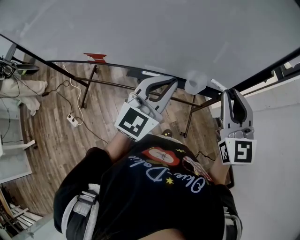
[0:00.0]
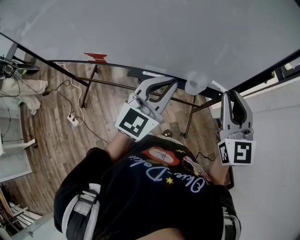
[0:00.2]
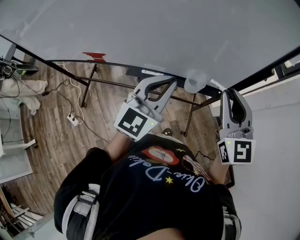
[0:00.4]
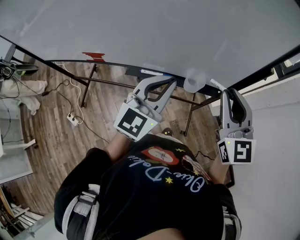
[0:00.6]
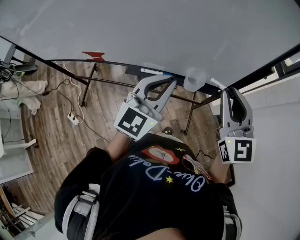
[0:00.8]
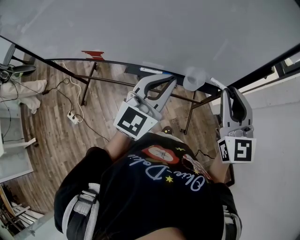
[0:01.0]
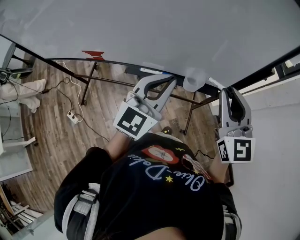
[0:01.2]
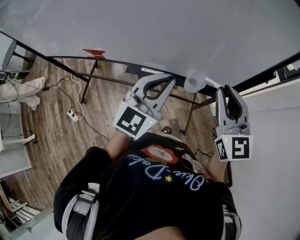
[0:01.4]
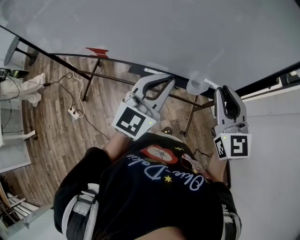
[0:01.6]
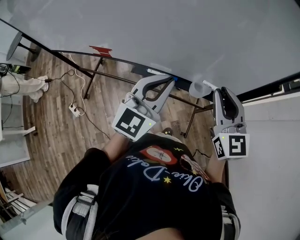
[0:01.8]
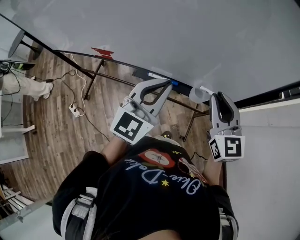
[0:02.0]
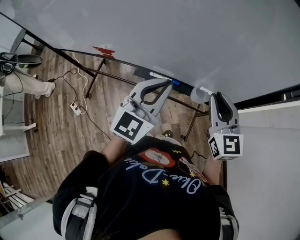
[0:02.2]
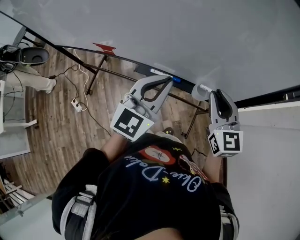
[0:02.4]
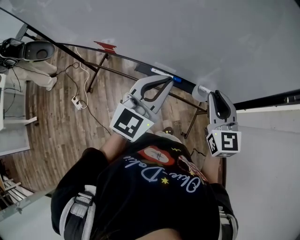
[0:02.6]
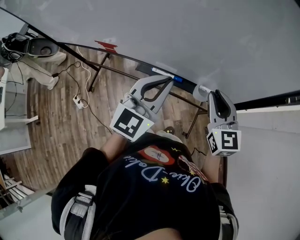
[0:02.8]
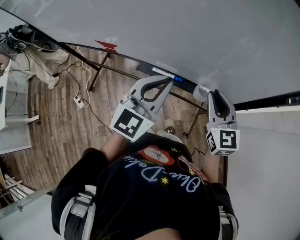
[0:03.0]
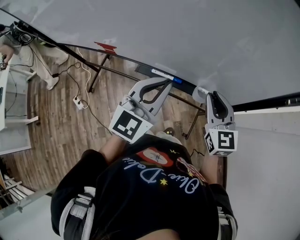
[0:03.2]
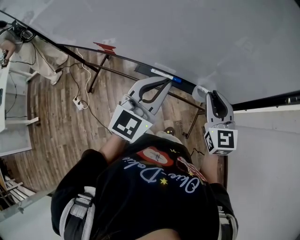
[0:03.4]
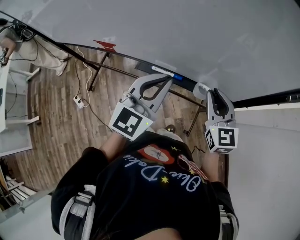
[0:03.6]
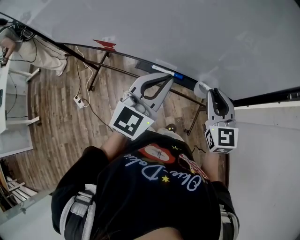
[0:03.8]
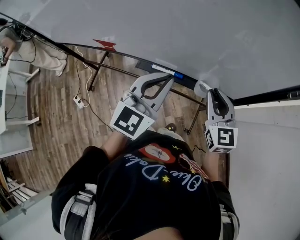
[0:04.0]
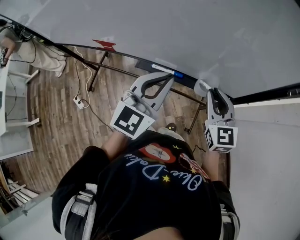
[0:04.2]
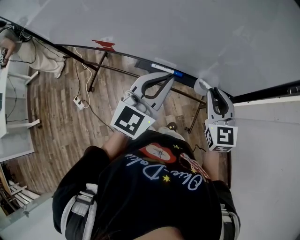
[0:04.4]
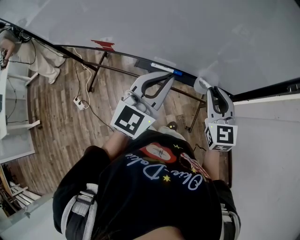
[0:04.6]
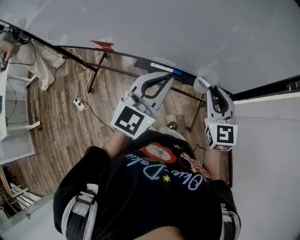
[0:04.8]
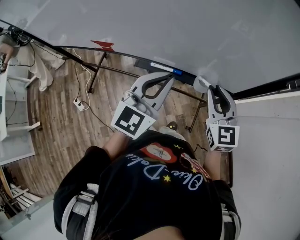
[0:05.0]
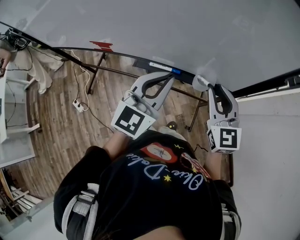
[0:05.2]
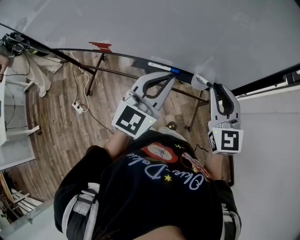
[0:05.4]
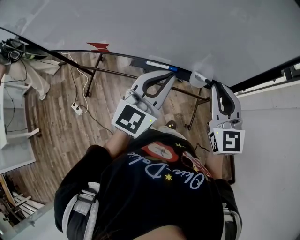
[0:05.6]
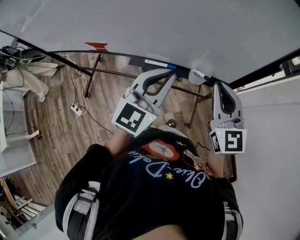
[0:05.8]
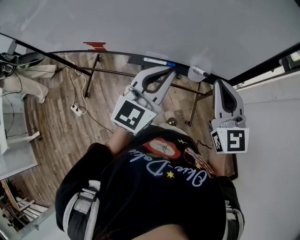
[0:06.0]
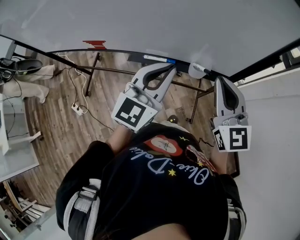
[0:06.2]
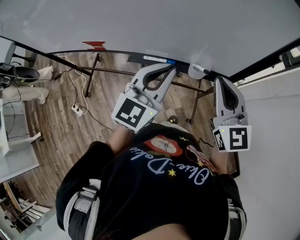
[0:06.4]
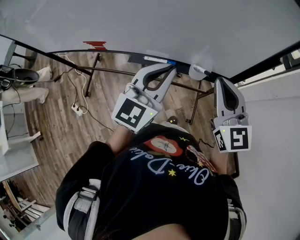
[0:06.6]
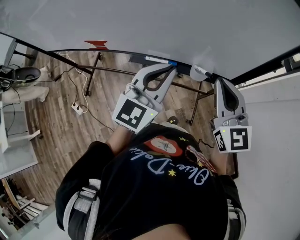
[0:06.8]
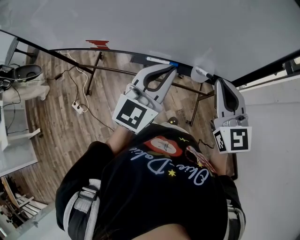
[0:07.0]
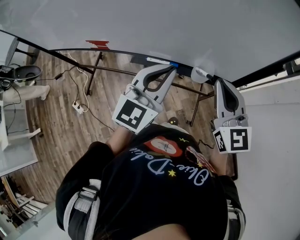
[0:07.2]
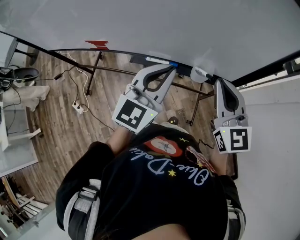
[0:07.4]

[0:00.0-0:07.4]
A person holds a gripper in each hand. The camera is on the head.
0:00.0 to 0:01.4: The grippers move only a little.
0:01.4 to 0:03.0: The right gripper travels downward by about 10 cm.
0:03.0 to 0:04.4: The grippers move only a little.
0:04.4 to 0:06.0: The right gripper travels upward by approximately 10 cm.
0:06.0 to 0:07.4: Neither gripper changes place.

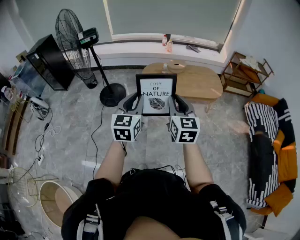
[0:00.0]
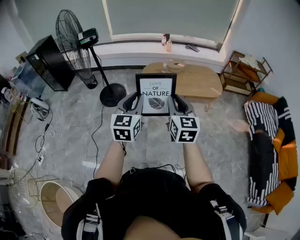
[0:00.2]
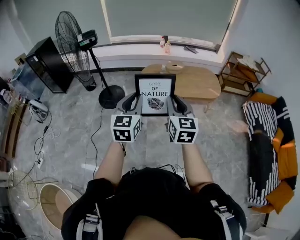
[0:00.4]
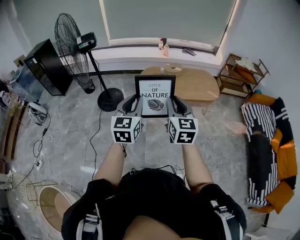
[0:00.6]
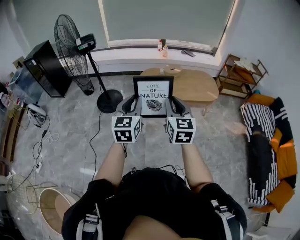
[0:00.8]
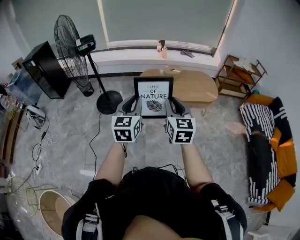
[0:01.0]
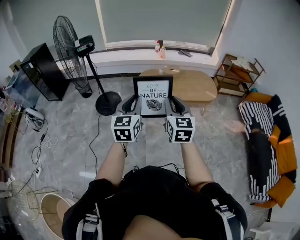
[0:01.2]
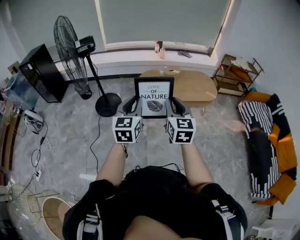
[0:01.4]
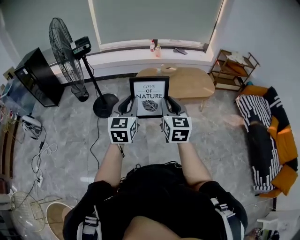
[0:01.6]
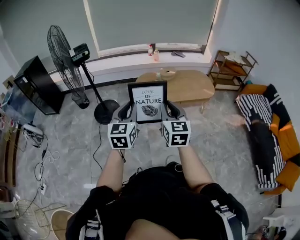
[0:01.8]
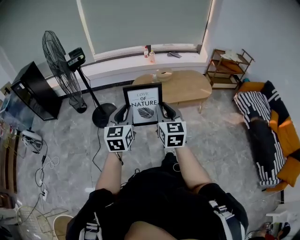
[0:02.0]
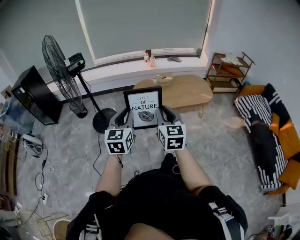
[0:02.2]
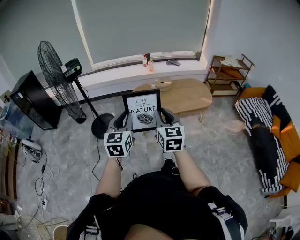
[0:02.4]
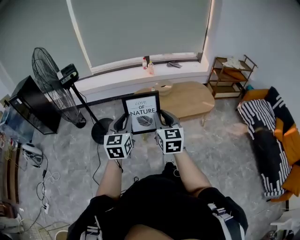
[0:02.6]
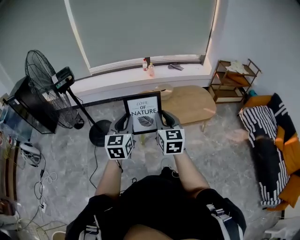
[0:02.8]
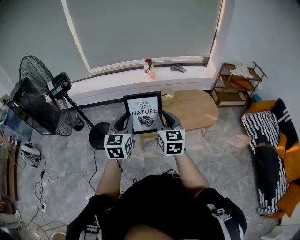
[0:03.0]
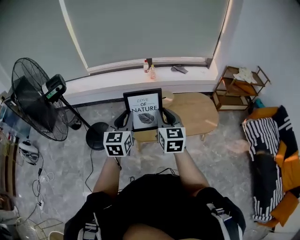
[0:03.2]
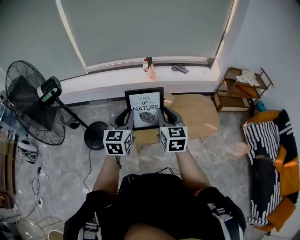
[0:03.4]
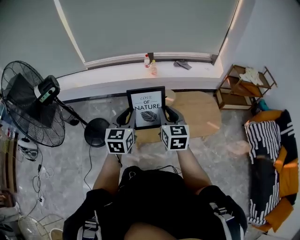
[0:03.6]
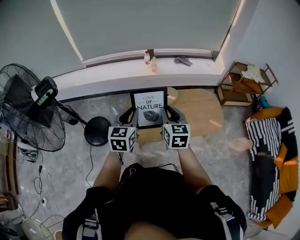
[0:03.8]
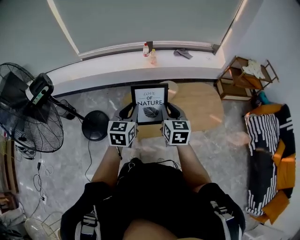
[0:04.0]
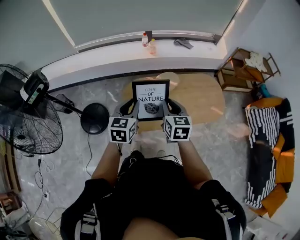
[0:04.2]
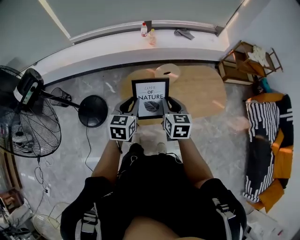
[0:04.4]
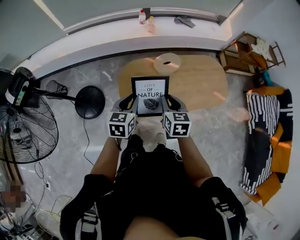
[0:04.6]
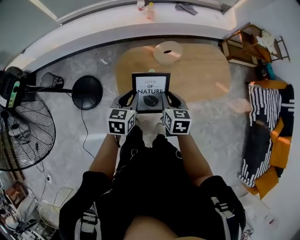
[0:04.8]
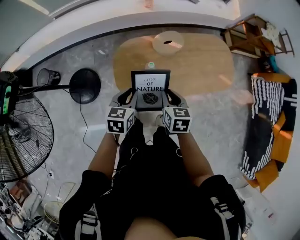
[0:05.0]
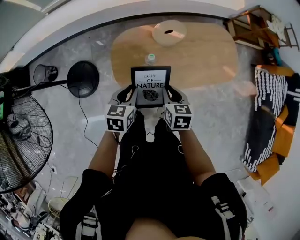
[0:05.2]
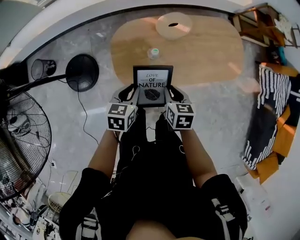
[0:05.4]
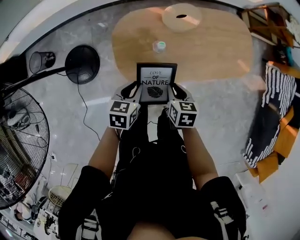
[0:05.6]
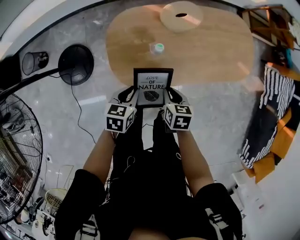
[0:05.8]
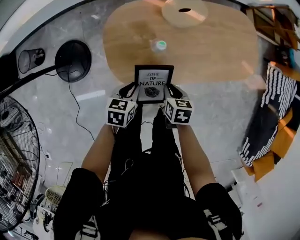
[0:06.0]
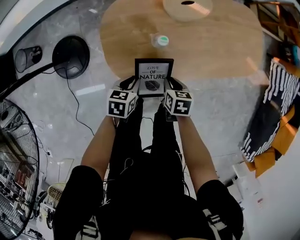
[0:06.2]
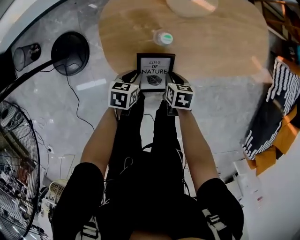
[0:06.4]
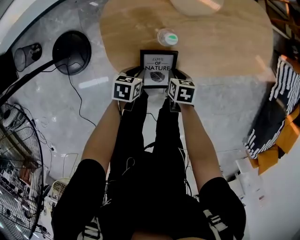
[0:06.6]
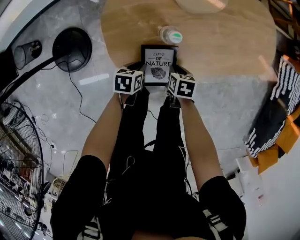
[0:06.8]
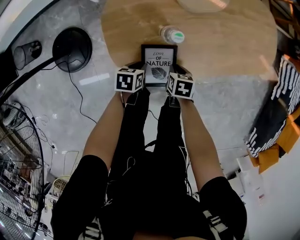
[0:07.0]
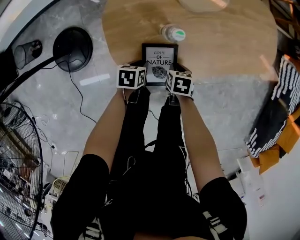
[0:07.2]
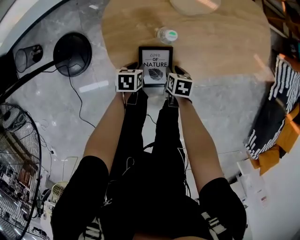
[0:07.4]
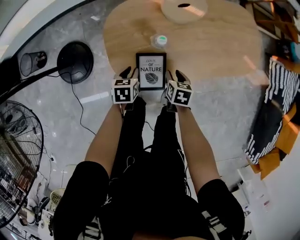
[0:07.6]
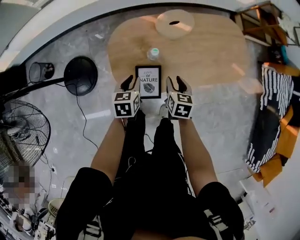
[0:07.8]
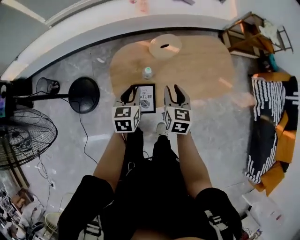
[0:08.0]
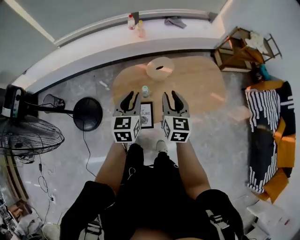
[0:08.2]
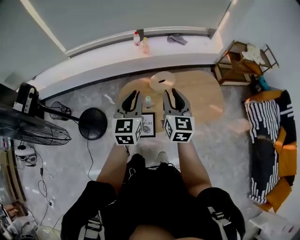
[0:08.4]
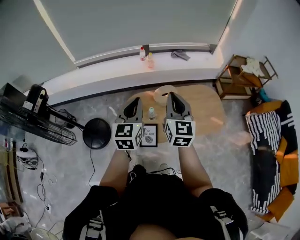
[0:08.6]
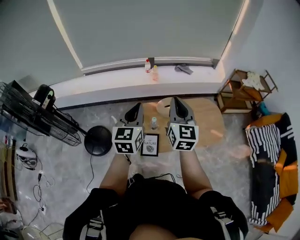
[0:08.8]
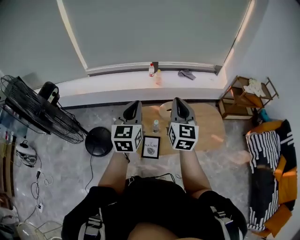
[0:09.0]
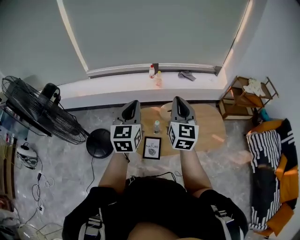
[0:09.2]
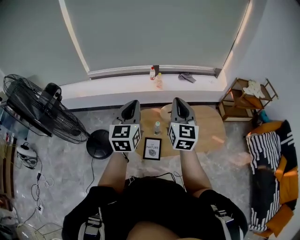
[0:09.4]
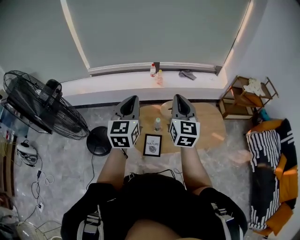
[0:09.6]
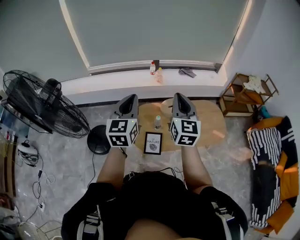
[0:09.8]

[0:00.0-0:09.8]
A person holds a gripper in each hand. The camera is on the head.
0:00.0 to 0:01.4: Both grippers move to the left, some 10 cm.
0:01.4 to 0:02.8: The two grippers go about 25 cm forward.
0:02.8 to 0:04.2: Both grippers are carried forward, approximately 40 cm.
0:04.2 to 0:05.6: Both grippers move downward, approximately 35 cm. The left gripper rotates some 30 degrees; the right gripper swivels some 30 degrees.
0:05.6 to 0:07.0: Both grippers move downward, approximately 30 cm. The left gripper rotates about 20 degrees.
0:07.0 to 0:08.4: The two grippers go some 70 cm upward. The left gripper tips its fingers upward by about 50 degrees. The right gripper tips its fingers upward by approximately 60 degrees.
0:08.4 to 0:09.8: The right gripper is displaced upward and backward by roughly 15 cm, and closes, while the left gripper is displaced upward, backward and to the left by roughly 20 cm.

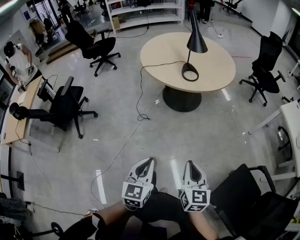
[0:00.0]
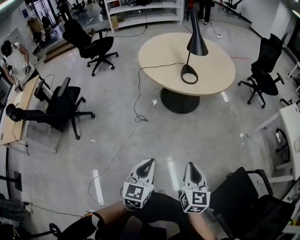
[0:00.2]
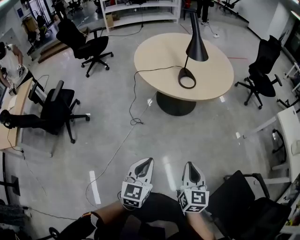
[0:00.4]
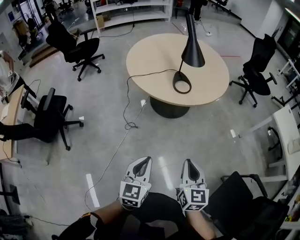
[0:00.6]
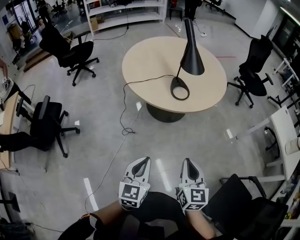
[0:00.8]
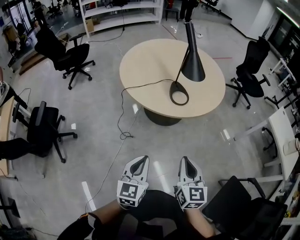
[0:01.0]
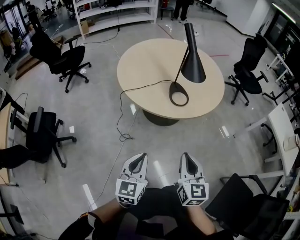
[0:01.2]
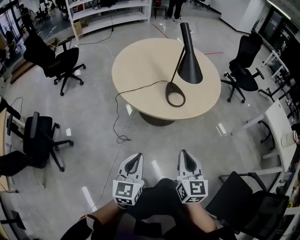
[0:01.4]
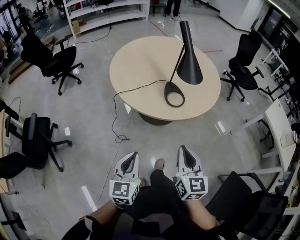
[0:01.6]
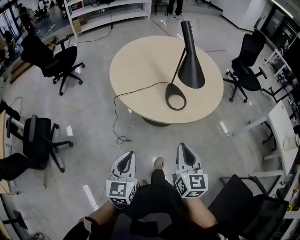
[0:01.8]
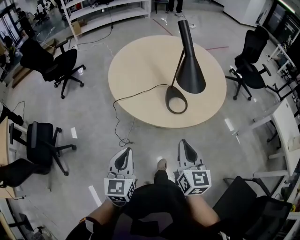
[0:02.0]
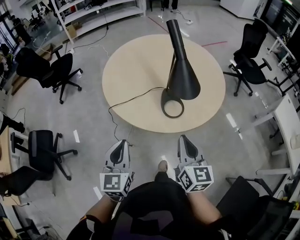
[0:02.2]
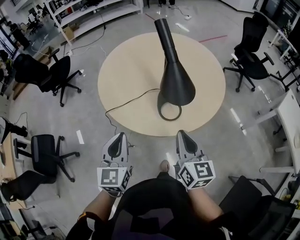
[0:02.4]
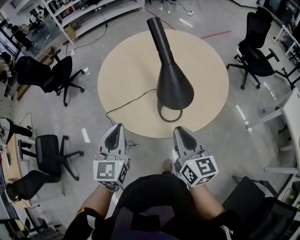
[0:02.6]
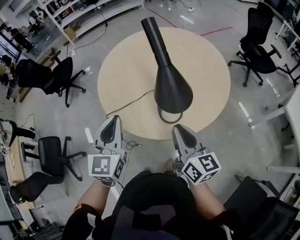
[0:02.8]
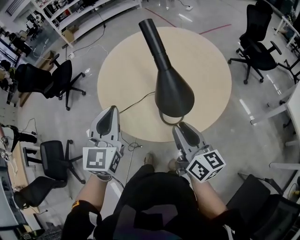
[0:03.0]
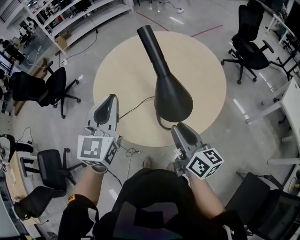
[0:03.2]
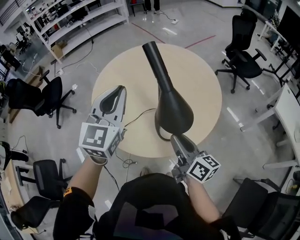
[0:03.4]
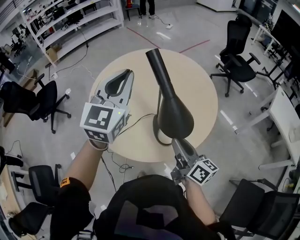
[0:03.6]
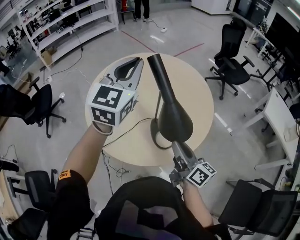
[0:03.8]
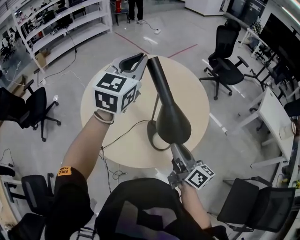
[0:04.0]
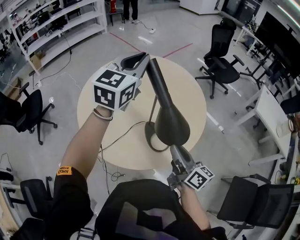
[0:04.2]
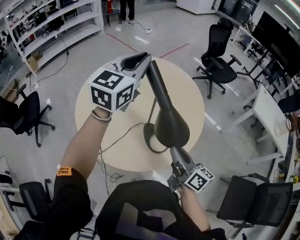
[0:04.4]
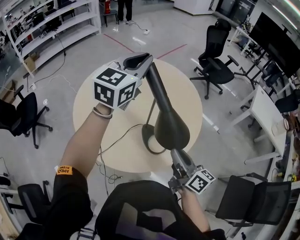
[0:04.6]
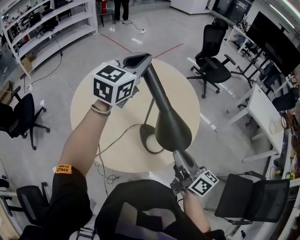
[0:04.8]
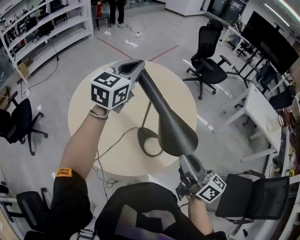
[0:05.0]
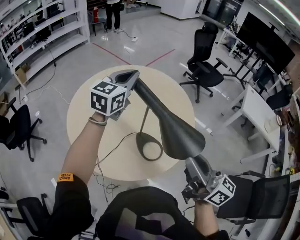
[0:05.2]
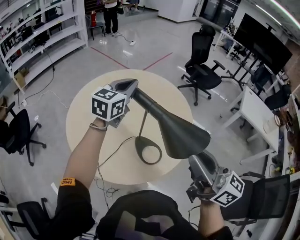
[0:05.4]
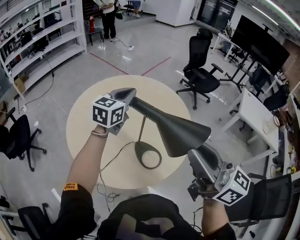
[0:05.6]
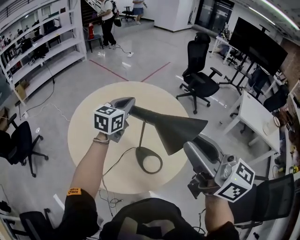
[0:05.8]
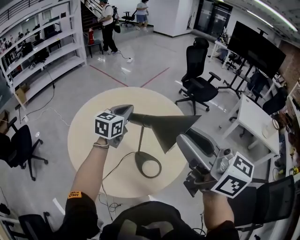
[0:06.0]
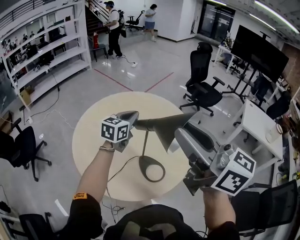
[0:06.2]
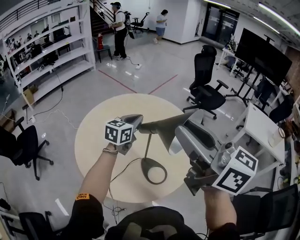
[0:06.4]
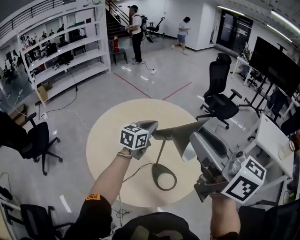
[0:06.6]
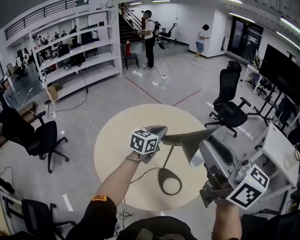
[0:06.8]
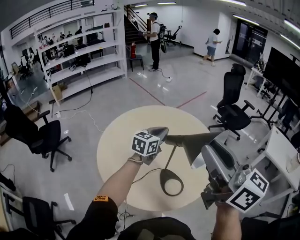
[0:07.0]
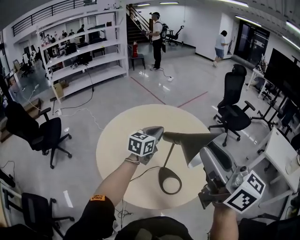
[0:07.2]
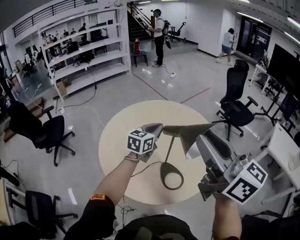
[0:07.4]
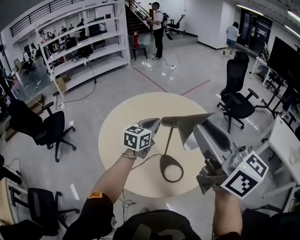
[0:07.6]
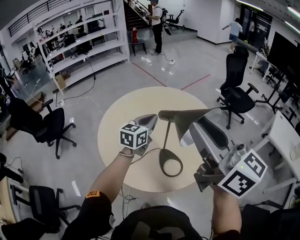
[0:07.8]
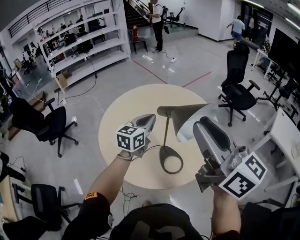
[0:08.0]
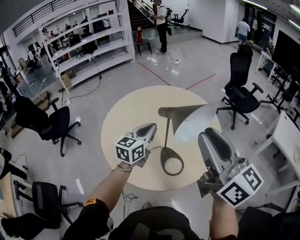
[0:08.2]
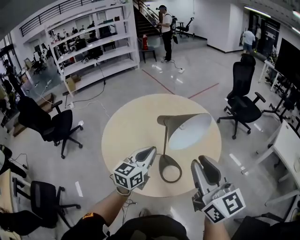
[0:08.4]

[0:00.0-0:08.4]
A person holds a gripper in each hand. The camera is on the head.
0:00.0 to 0:01.4: Both grippers move forward and to the left, approximately 40 cm.
0:01.4 to 0:02.8: The grippers both shift forward by some 35 cm. The right gripper changes its angle by about 30 degrees.
0:02.8 to 0:04.2: The left gripper changes place by roughly 35 cm, and turns by roughly 40 degrees; the right gripper changes place by about 10 cm, and rotates roughly 20 degrees.
0:04.2 to 0:05.6: The right gripper moves upward, approximately 25 cm, and swivels approximately 30 degrees; the left gripper moves downward and forward, roughly 10 cm.
0:05.6 to 0:07.0: The right gripper is displaced upward by roughly 10 cm.
0:07.0 to 0:08.4: The left gripper is displaced backward by some 20 cm; the right gripper goes roughly 15 cm downward, to the right and backward.
